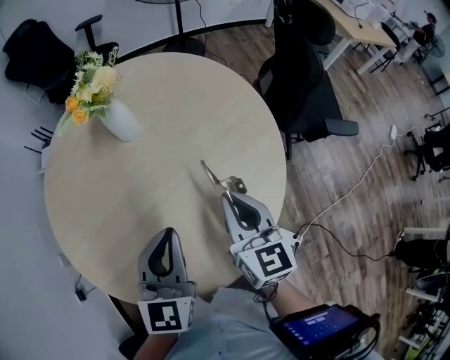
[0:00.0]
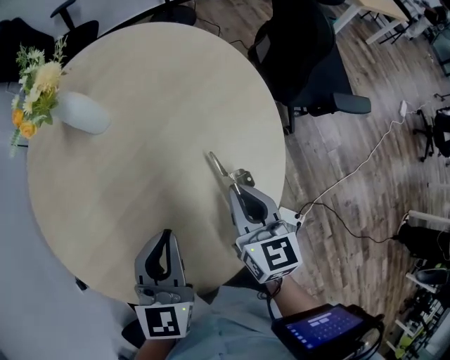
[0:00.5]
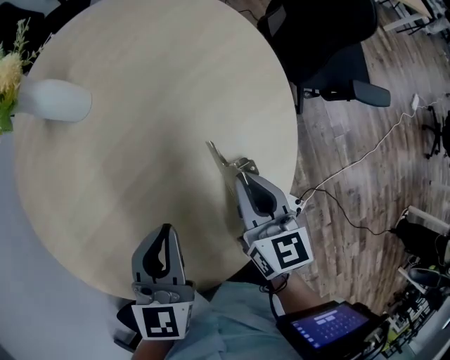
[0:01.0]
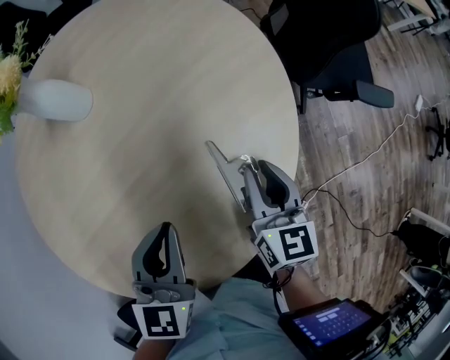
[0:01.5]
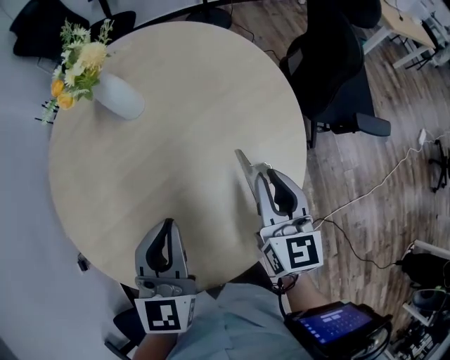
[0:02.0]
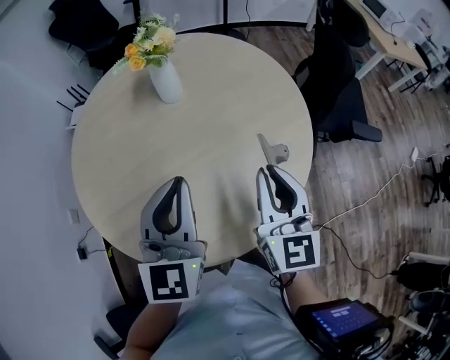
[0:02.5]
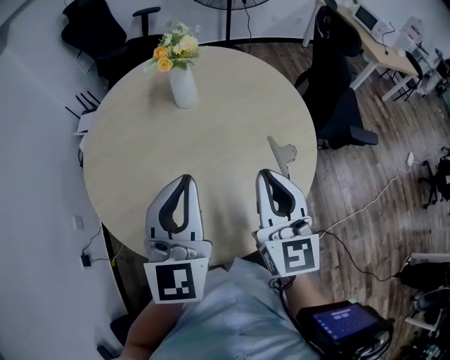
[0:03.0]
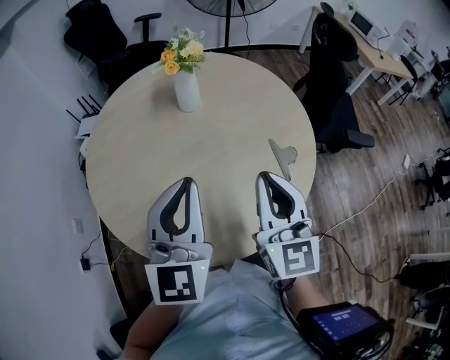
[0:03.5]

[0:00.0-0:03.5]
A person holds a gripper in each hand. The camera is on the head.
0:00.0 to 0:02.0: The left gripper travels downward and back again, some 15 cm each way, while the right gripper shifts some 10 cm to the right, and moves roughly 20 cm downward and comes back.
0:02.0 to 0:03.5: Both grippers move to the left, upward and backward, roughly 30 cm. The right gripper rotates some 20 degrees.

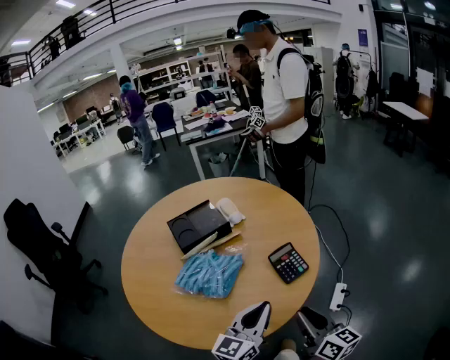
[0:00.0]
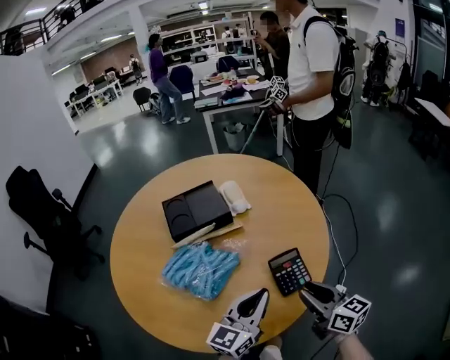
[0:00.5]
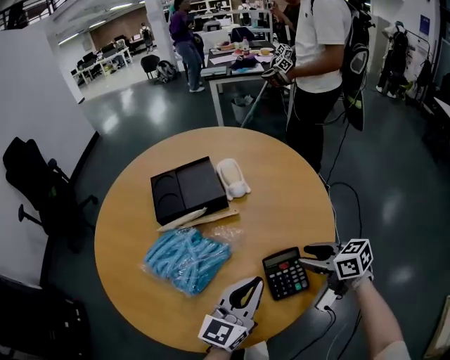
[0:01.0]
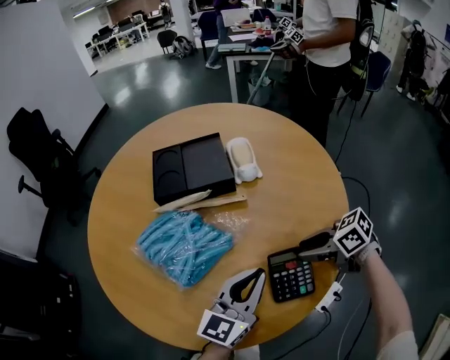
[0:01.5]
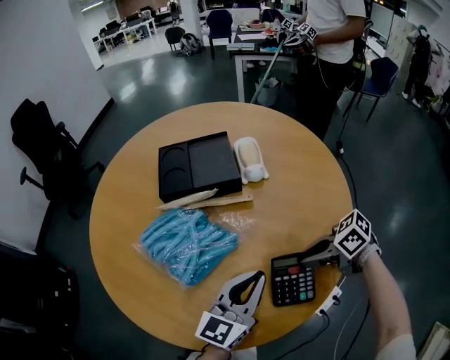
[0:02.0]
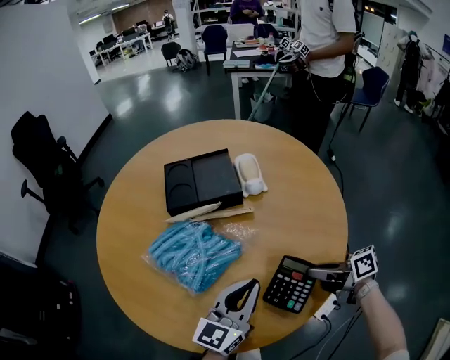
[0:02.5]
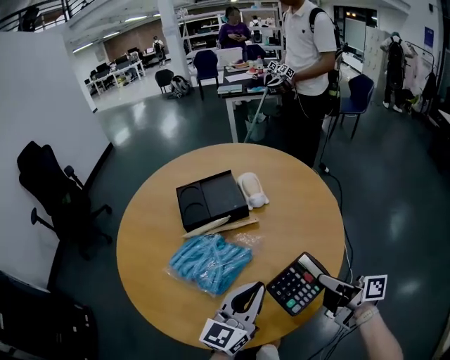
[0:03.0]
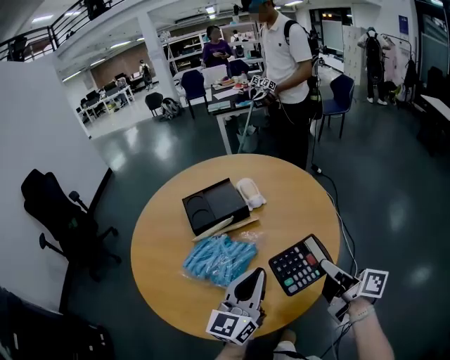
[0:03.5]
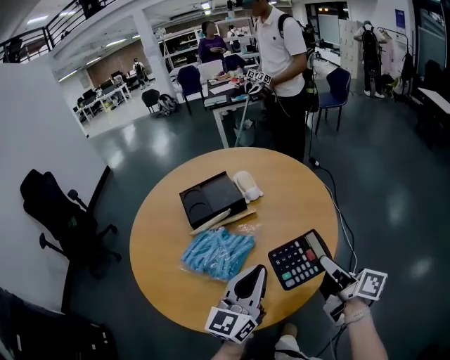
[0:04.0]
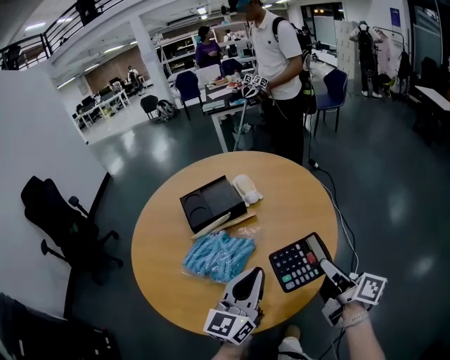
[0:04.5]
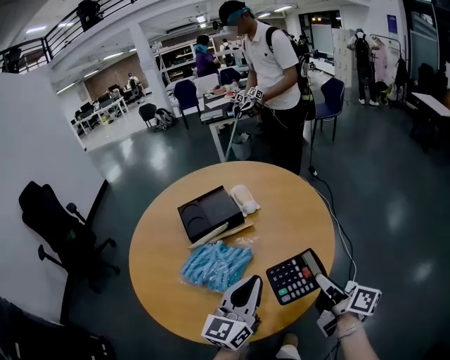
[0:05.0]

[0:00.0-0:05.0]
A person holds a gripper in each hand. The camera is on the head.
0:00.0 to 0:02.5: The right gripper moves approximately 35 cm, changes its angle by roughly 60 degrees, and opens and closes again. Meanwhile the left gripper changes place by about 20 cm.
0:02.5 to 0:05.0: The grippers both shift upward by about 15 cm. The right gripper swivels approximately 60 degrees.

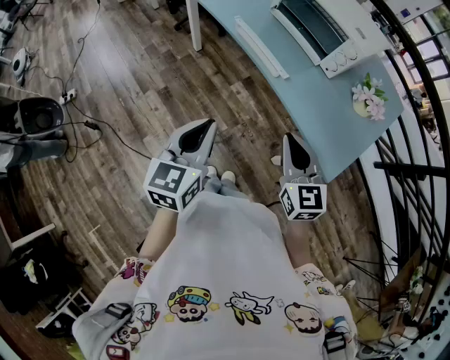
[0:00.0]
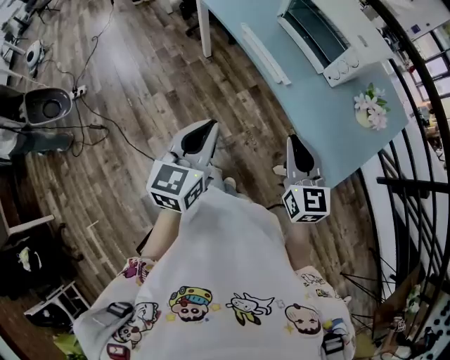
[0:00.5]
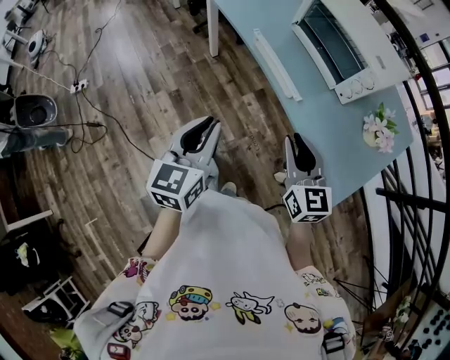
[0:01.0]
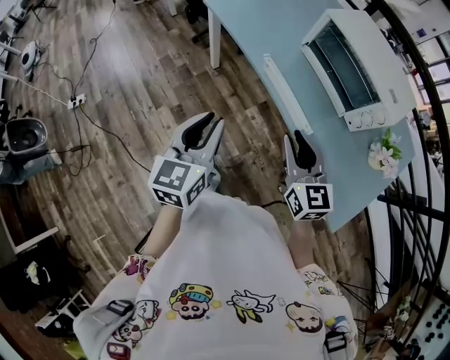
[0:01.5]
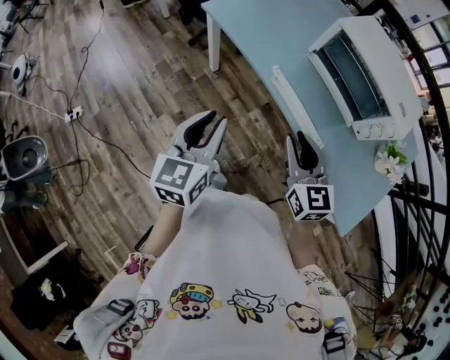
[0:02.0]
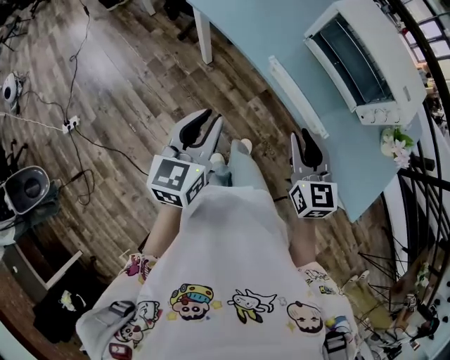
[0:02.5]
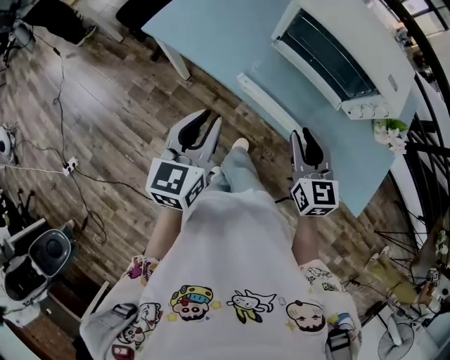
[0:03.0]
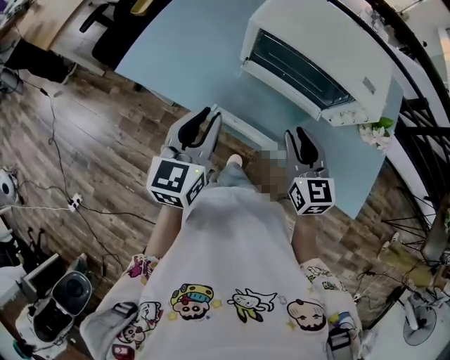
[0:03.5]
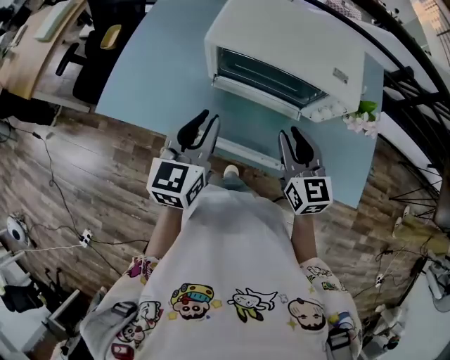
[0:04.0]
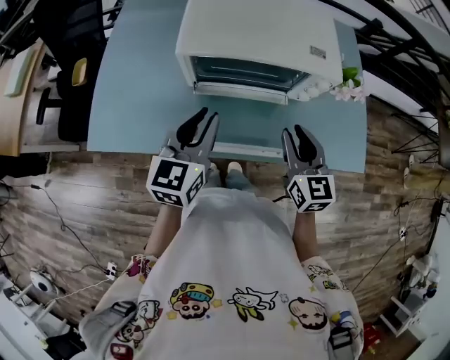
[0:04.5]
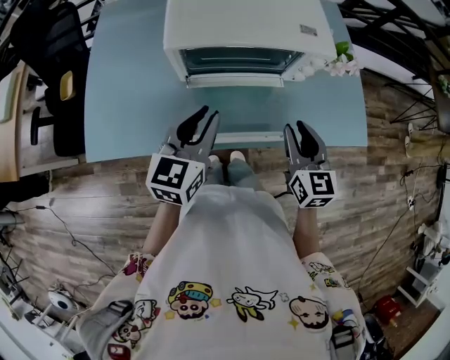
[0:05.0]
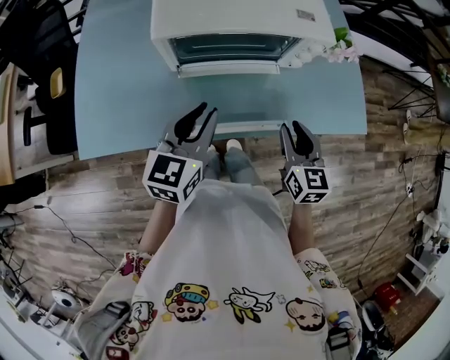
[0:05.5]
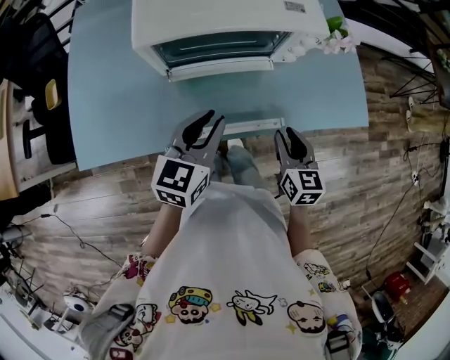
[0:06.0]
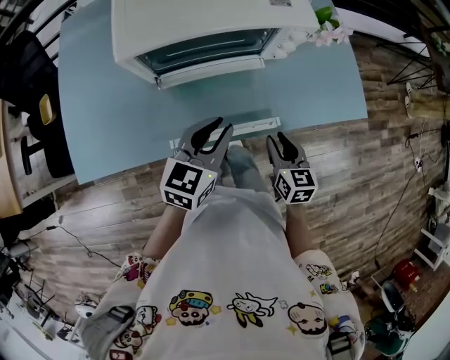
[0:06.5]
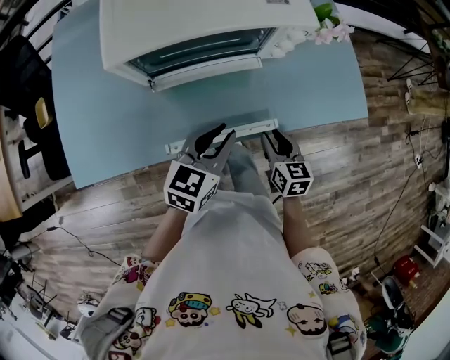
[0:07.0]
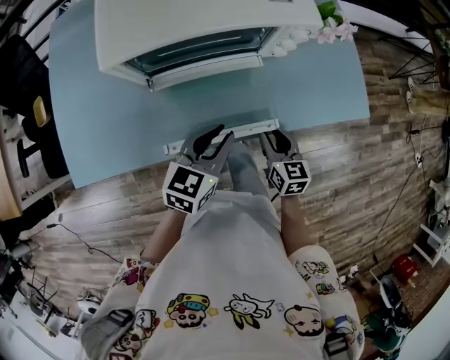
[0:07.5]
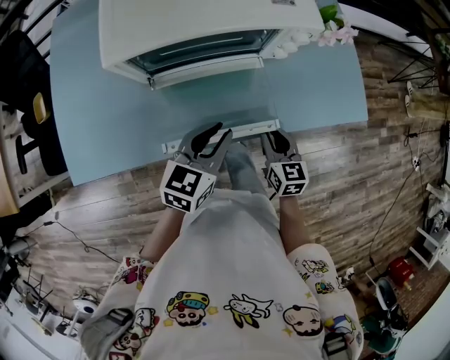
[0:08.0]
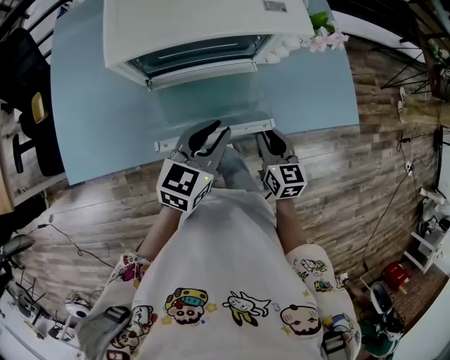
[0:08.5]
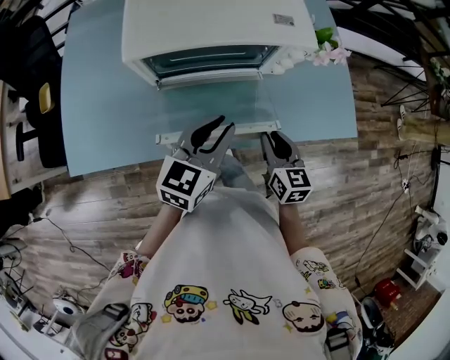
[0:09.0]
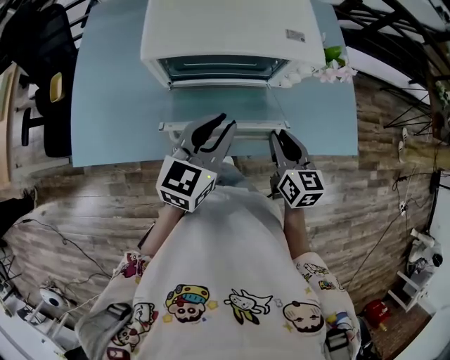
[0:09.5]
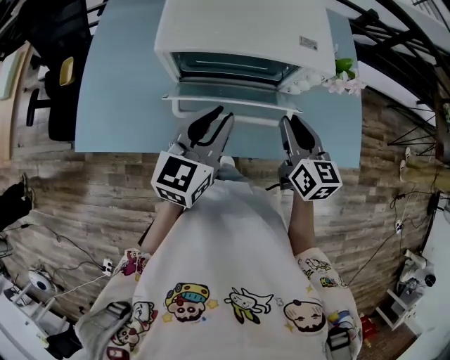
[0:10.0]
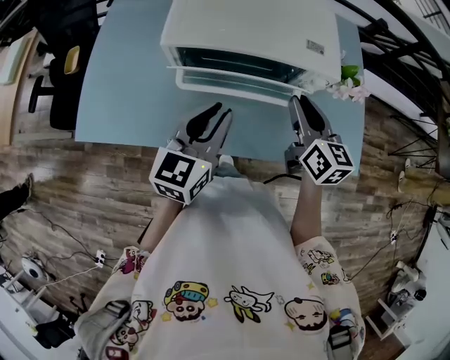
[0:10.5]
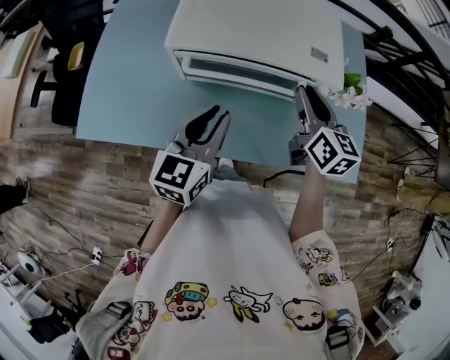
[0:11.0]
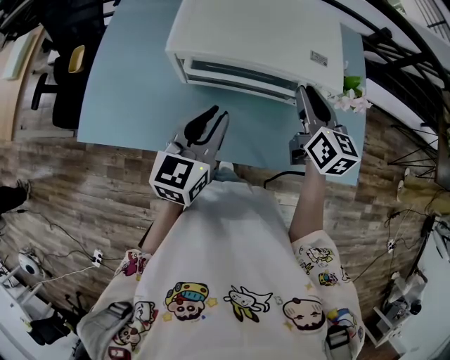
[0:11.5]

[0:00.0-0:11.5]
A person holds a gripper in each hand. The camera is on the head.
0:00.0 to 0:02.0: The two grippers go approximately 25 cm forward and to the left. The right gripper opens.
0:02.0 to 0:04.0: The left gripper ends up approximately 30 cm from where it was, and changes its angle by some 30 degrees. The right gripper shifts by roughly 20 cm, and rotates some 30 degrees.
0:04.0 to 0:06.0: The left gripper moves some 10 cm, and rotates roughly 30 degrees, while the right gripper moves about 15 cm, and swivels some 30 degrees.
0:06.0 to 0:07.5: The right gripper heads downward, covering approximately 10 cm. The left gripper is displaced downward and to the right by some 10 cm.
0:07.5 to 0:09.5: The two grippers go about 10 cm upward.
0:09.5 to 0:11.5: The left gripper moves about 5 cm, while the right gripper shifts approximately 15 cm forward and upward.

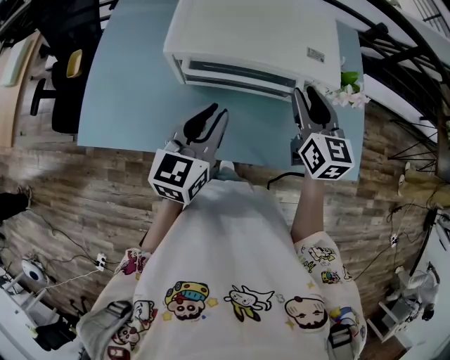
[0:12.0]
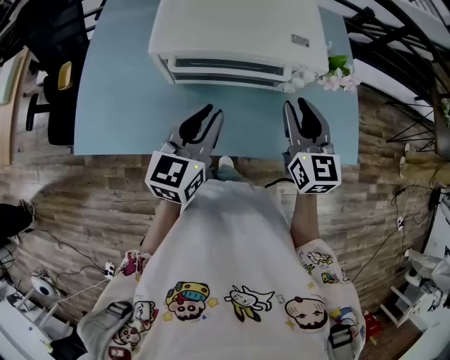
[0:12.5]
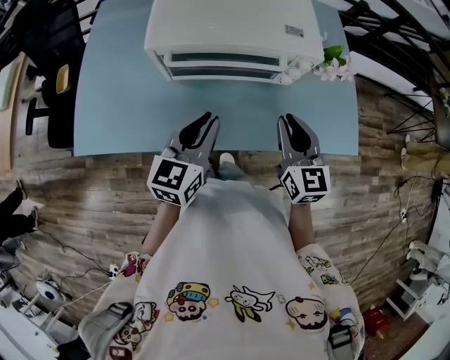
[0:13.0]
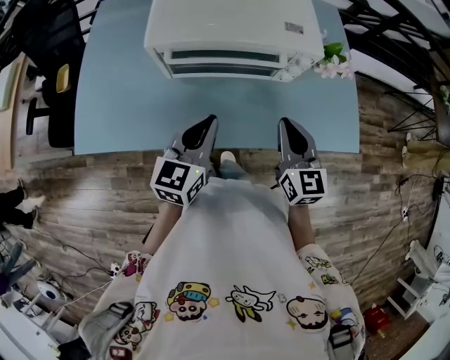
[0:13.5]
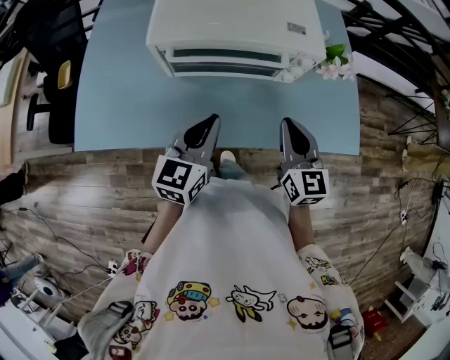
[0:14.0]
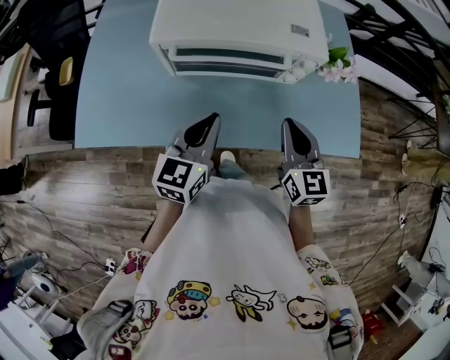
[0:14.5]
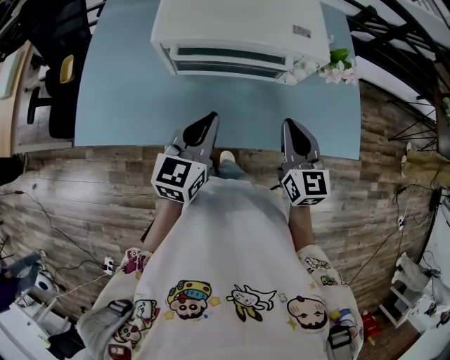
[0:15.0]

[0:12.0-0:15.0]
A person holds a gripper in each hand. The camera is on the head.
0:12.0 to 0:13.5: The left gripper changes place by some 5 cm; the right gripper goes roughly 15 cm backward, and closes its fingers.
0:13.5 to 0:15.0: The two grippers keep their place.

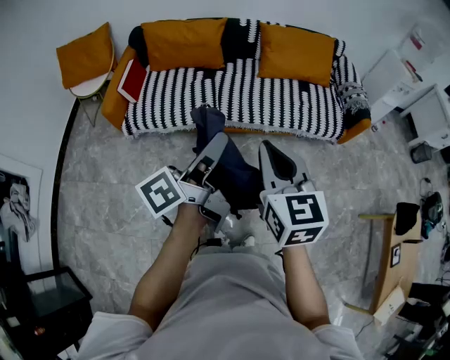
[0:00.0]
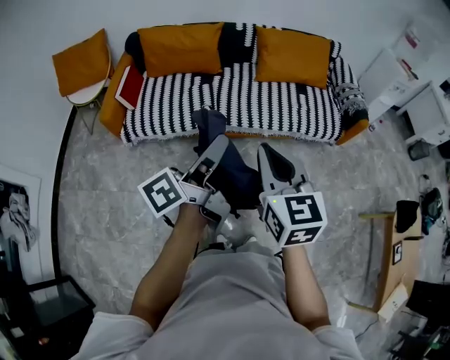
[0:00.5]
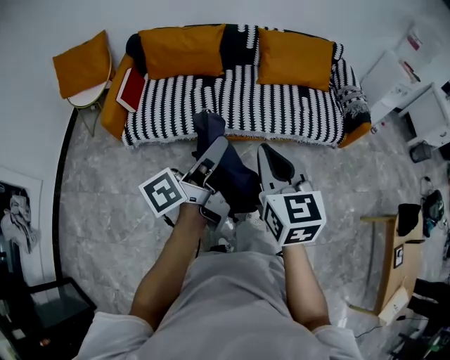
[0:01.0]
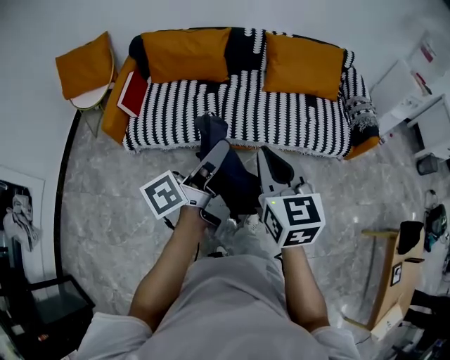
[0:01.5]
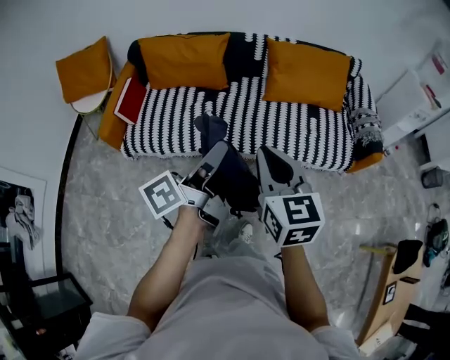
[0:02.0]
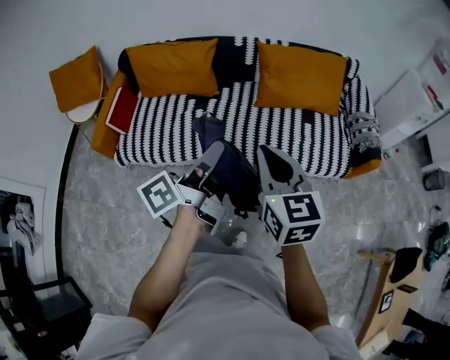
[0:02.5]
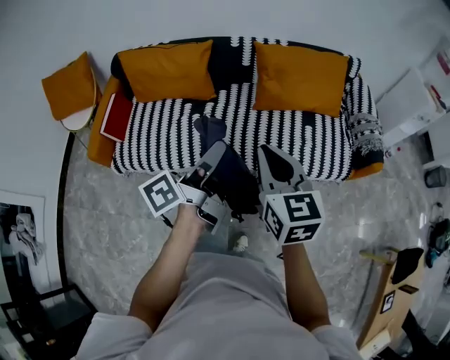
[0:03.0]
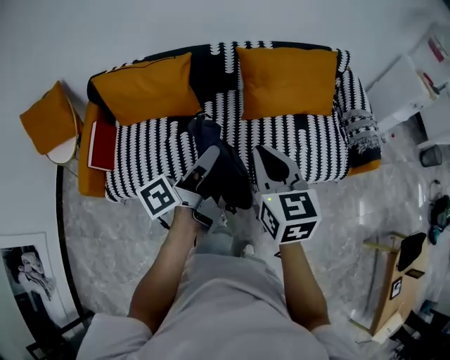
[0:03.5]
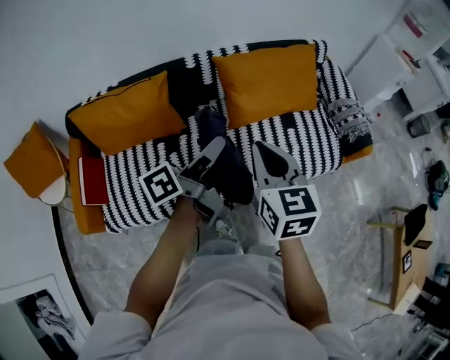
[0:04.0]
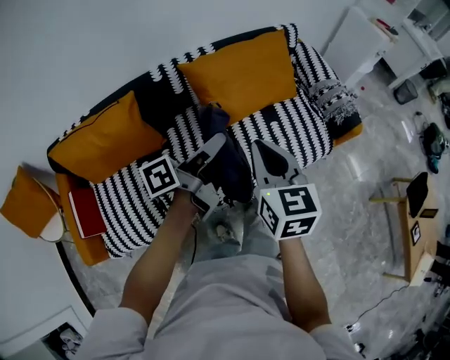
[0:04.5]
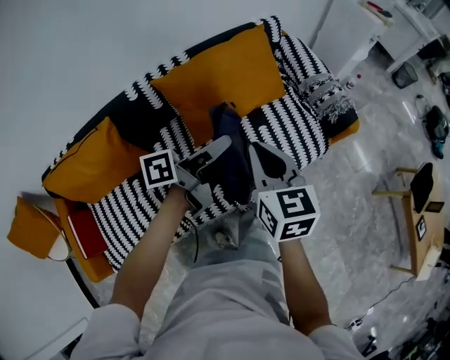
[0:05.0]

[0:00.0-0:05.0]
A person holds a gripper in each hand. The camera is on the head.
0:00.0 to 0:02.5: The two grippers go about 25 cm forward.
0:02.5 to 0:05.0: The left gripper moves roughly 40 cm, and changes its angle by roughly 50 degrees, while the right gripper ends up roughly 35 cm from where it was, and rotates about 30 degrees.
